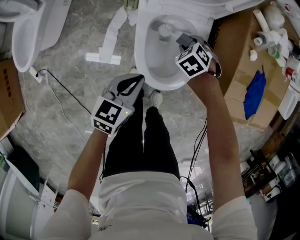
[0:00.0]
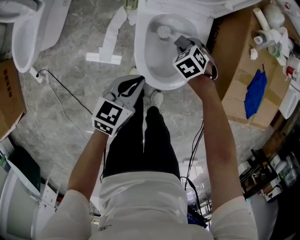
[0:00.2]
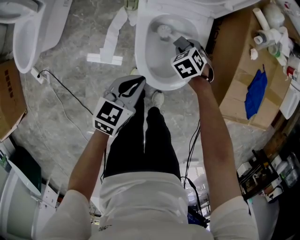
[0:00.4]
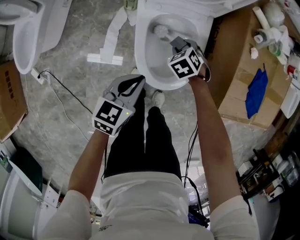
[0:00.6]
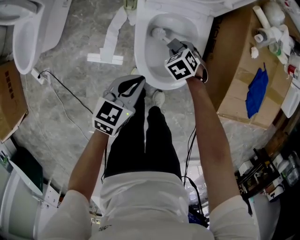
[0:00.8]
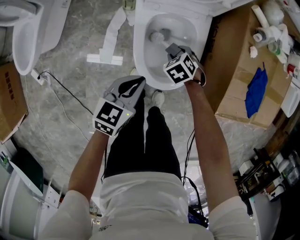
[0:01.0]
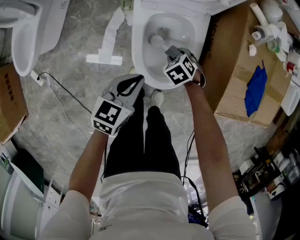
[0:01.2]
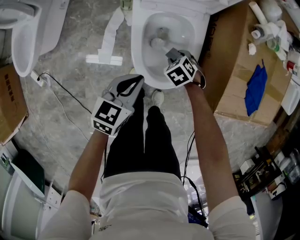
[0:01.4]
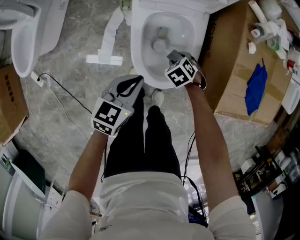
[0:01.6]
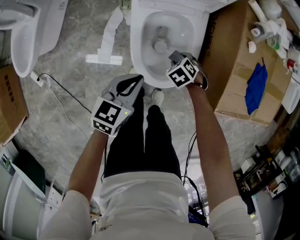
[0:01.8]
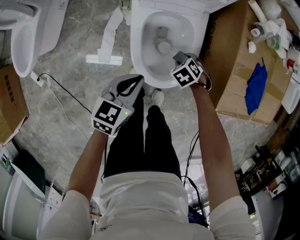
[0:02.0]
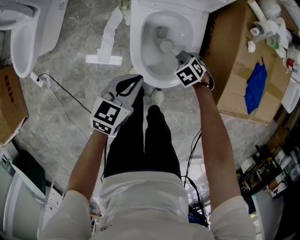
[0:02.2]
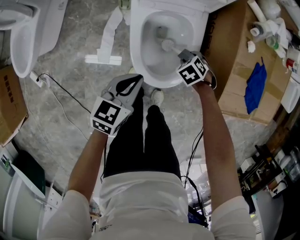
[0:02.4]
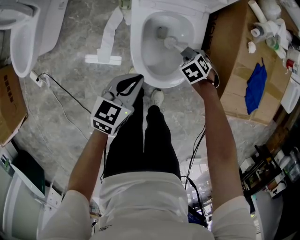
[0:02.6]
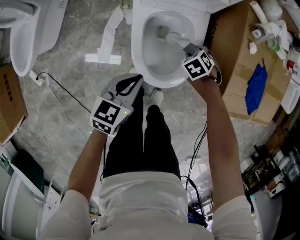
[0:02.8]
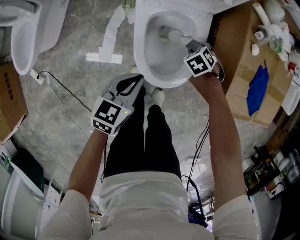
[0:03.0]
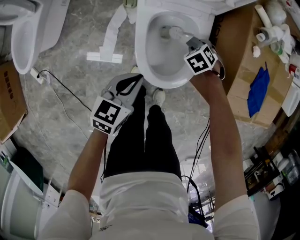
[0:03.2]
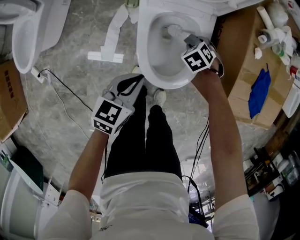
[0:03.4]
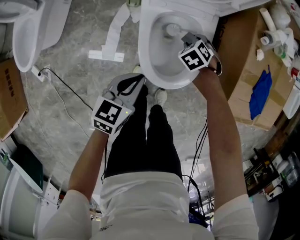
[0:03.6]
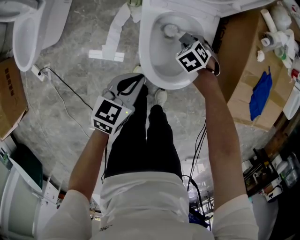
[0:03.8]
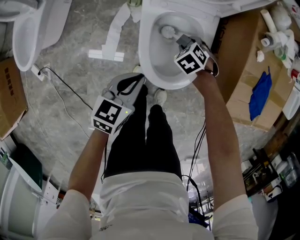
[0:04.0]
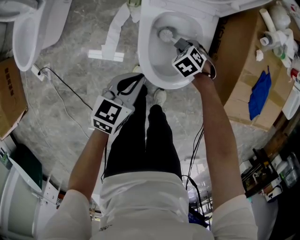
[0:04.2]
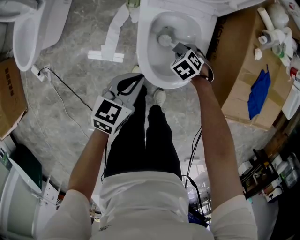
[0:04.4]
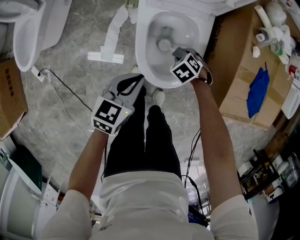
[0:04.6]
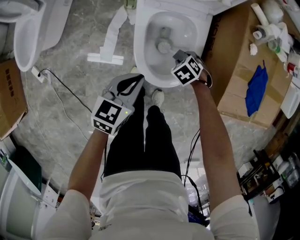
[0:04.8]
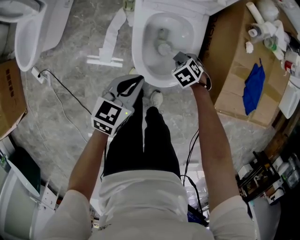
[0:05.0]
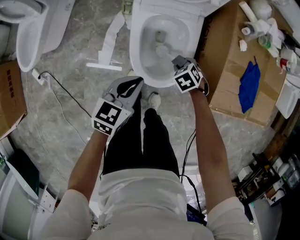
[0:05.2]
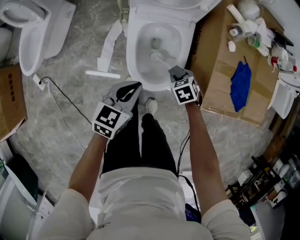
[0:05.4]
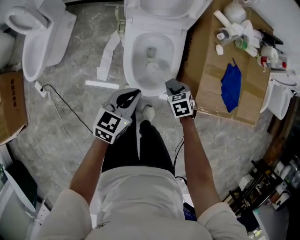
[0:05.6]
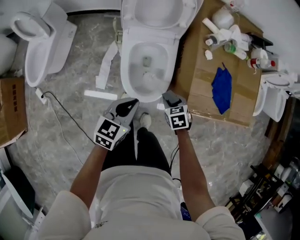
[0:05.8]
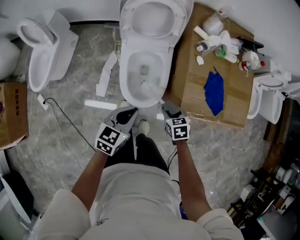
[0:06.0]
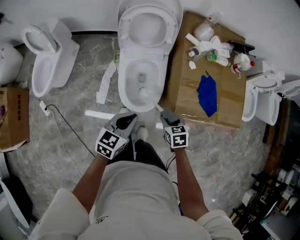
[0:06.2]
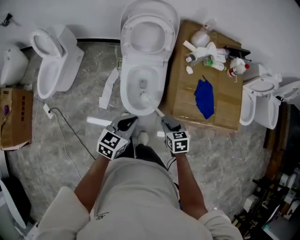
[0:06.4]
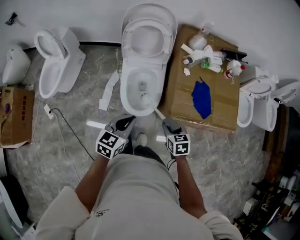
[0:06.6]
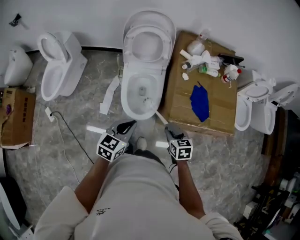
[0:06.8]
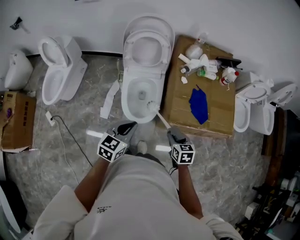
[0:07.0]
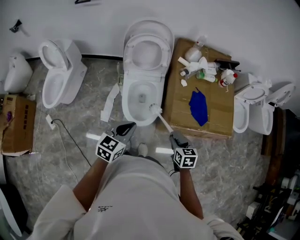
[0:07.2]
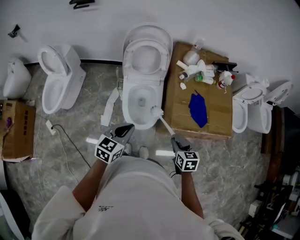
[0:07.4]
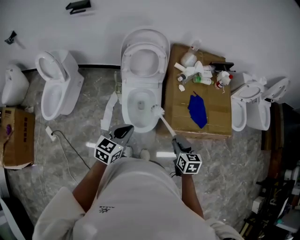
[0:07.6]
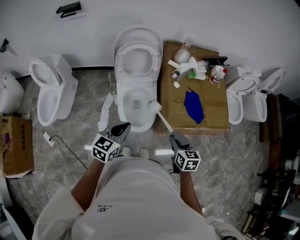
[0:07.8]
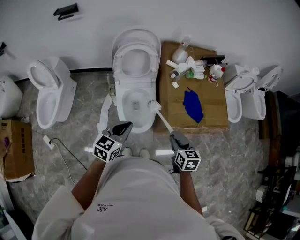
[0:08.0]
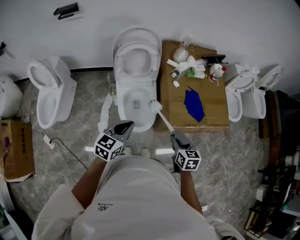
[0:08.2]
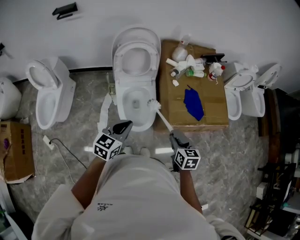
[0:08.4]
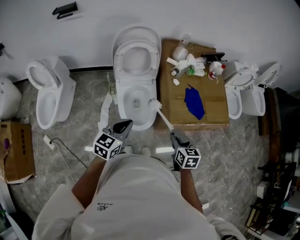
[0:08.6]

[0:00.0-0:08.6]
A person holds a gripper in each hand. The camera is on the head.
0:00.0 to 0:01.4: The right gripper shifts by approximately 10 cm.
0:01.4 to 0:02.8: The right gripper changes place by about 10 cm.
0:02.8 to 0:04.4: The right gripper moves about 10 cm.
0:04.4 to 0:05.8: The left gripper moves upward, approximately 15 cm; the right gripper changes place by some 25 cm, and swivels some 40 degrees.
0:05.8 to 0:07.2: The left gripper is displaced upward and backward by about 20 cm. The right gripper goes approximately 25 cm upward, backward and to the right, and changes its angle by roughly 30 degrees.
0:07.2 to 0:08.6: The right gripper goes approximately 5 cm upward, while the left gripper is displaced to the left by roughly 5 cm.

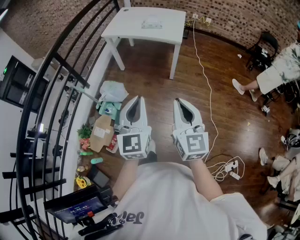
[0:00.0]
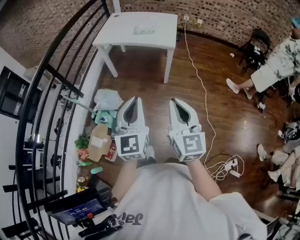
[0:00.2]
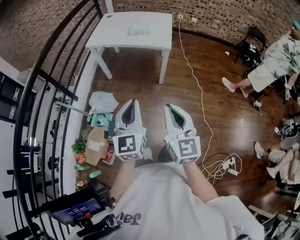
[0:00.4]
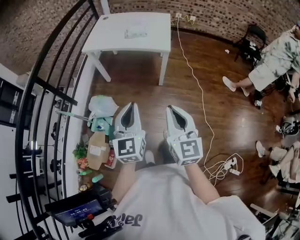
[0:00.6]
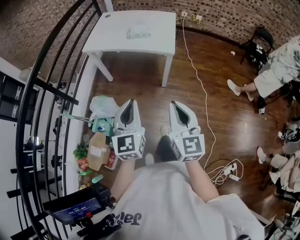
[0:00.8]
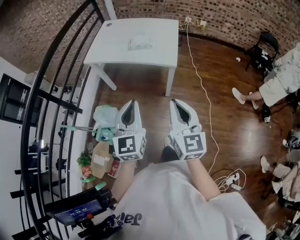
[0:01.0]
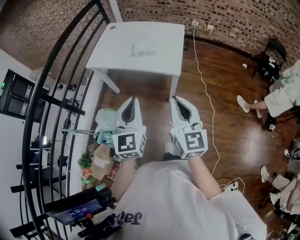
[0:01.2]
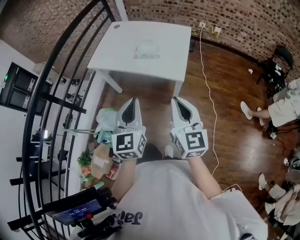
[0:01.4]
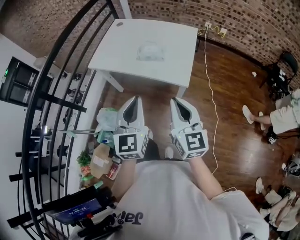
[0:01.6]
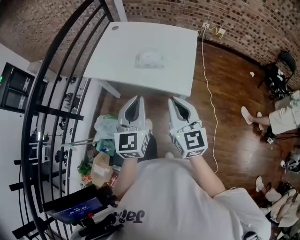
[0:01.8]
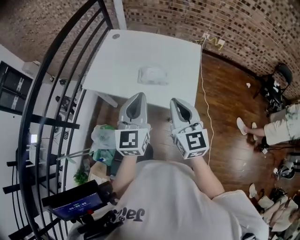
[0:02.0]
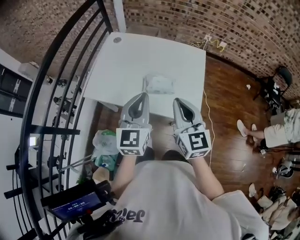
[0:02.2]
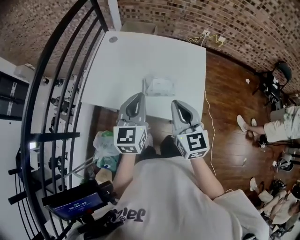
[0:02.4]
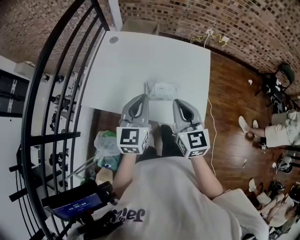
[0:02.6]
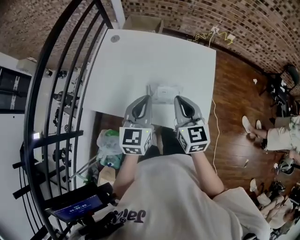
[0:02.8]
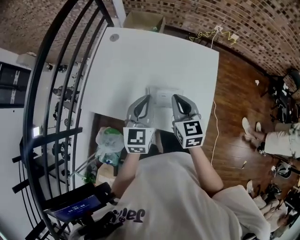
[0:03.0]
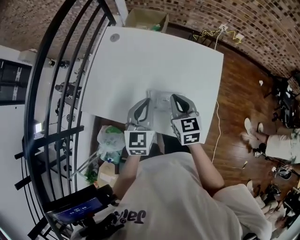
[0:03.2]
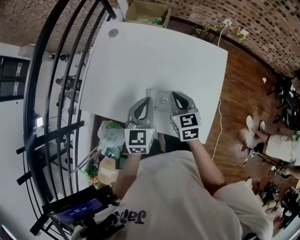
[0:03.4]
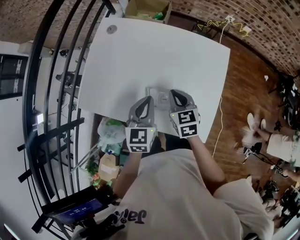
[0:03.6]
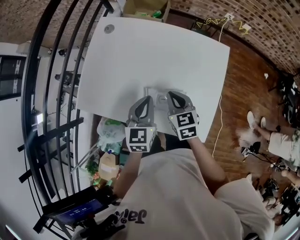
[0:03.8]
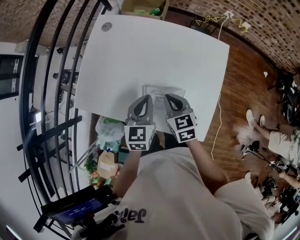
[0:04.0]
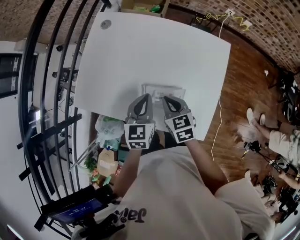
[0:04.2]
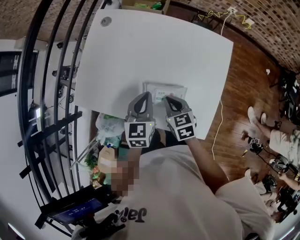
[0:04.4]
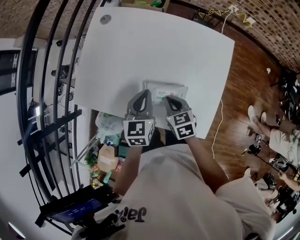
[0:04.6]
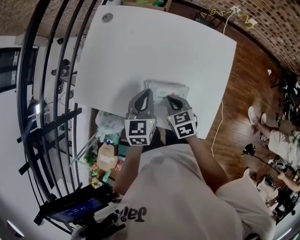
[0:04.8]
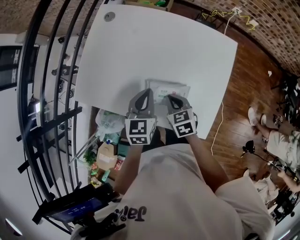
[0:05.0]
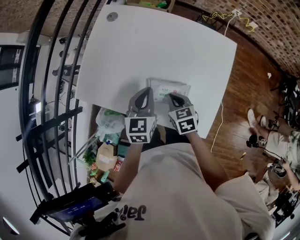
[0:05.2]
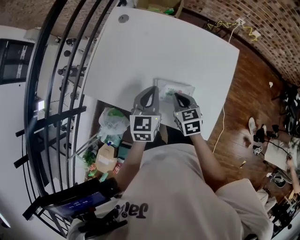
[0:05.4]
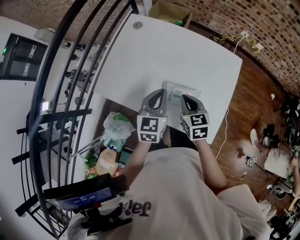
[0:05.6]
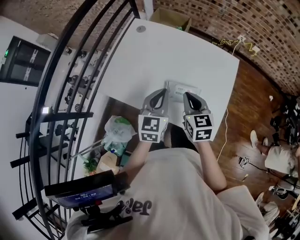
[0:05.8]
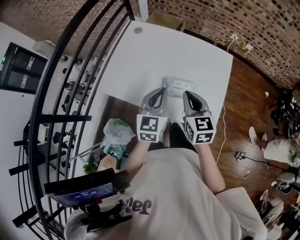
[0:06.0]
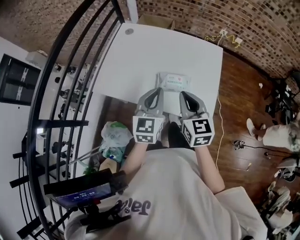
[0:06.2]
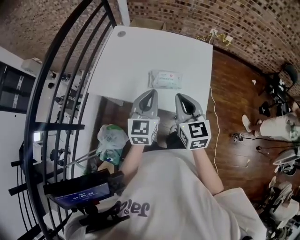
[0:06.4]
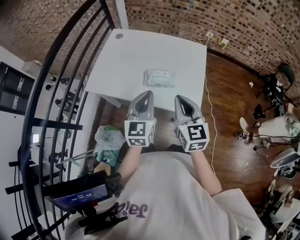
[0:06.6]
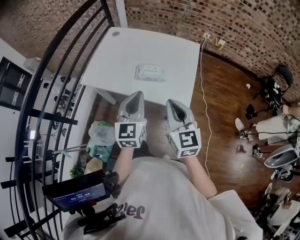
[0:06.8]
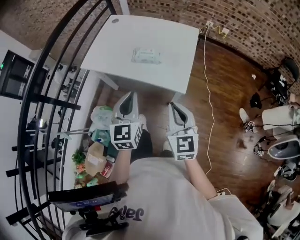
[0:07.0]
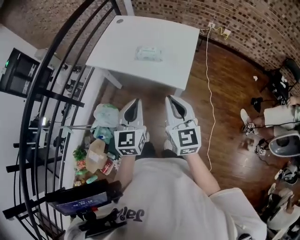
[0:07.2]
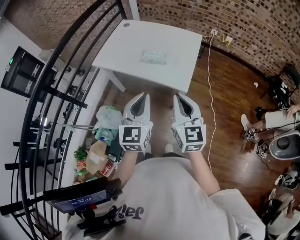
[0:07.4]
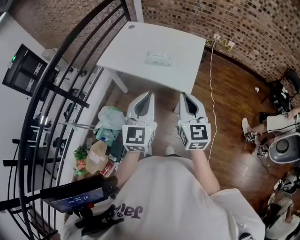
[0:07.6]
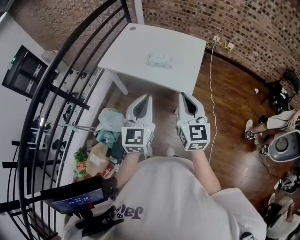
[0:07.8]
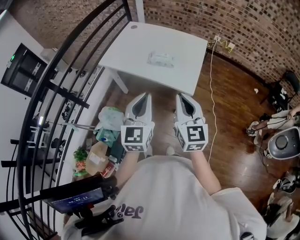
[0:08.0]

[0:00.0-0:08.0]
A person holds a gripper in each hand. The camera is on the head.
0:00.0 to 0:01.6: The pair of grippers is taken forward, some 50 cm.
0:01.6 to 0:03.2: The pair of grippers is taken forward, approximately 50 cm. The right gripper turns by approximately 30 degrees.
0:03.2 to 0:04.8: The two grippers go roughly 10 cm downward. The right gripper swivels roughly 20 degrees.
0:04.8 to 0:06.4: The right gripper heads upward and backward, covering roughly 30 cm, and tips its fingers upward by some 30 degrees. The left gripper heads backward and upward, covering approximately 25 cm, and rotates approximately 20 degrees.
0:06.4 to 0:08.0: The grippers both shift backward by about 30 cm.

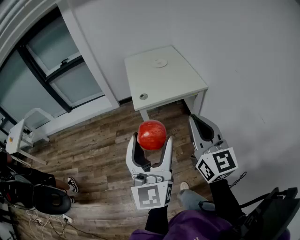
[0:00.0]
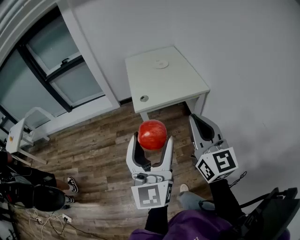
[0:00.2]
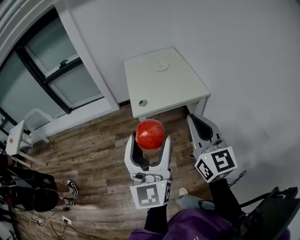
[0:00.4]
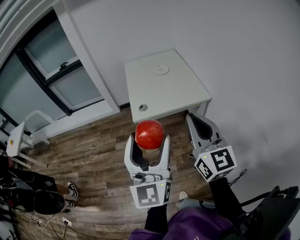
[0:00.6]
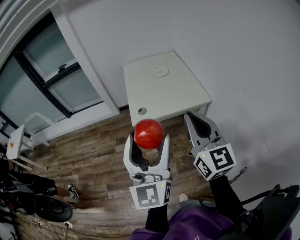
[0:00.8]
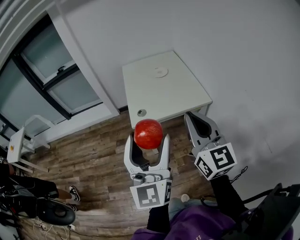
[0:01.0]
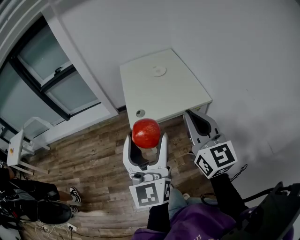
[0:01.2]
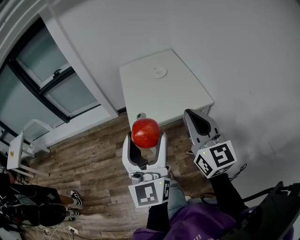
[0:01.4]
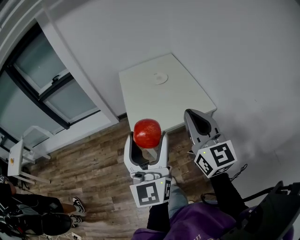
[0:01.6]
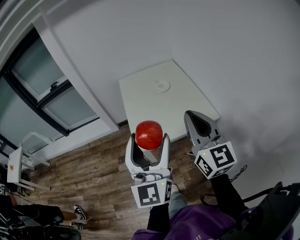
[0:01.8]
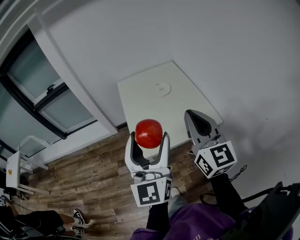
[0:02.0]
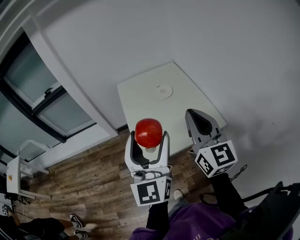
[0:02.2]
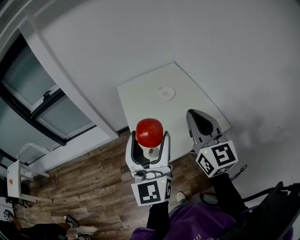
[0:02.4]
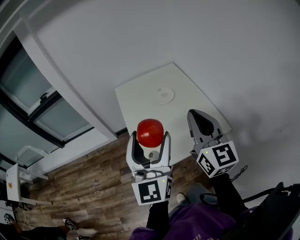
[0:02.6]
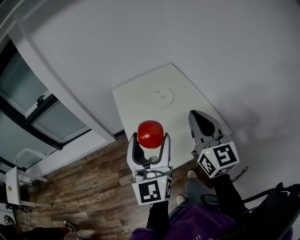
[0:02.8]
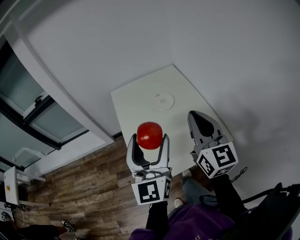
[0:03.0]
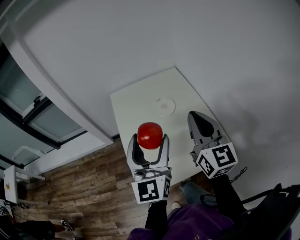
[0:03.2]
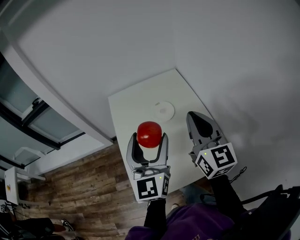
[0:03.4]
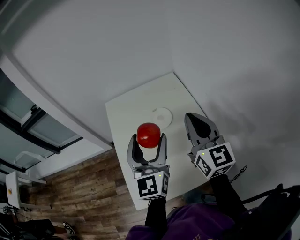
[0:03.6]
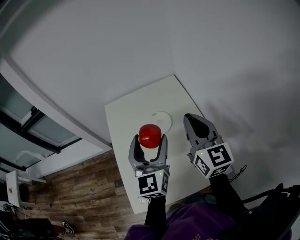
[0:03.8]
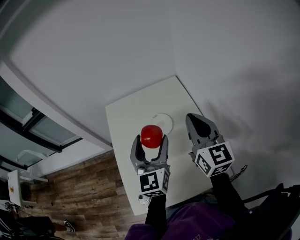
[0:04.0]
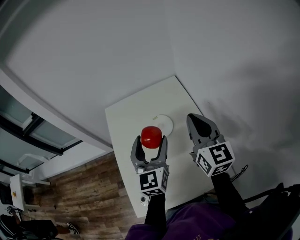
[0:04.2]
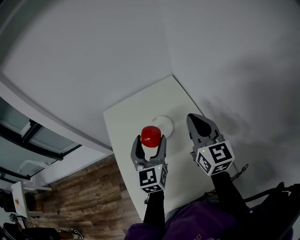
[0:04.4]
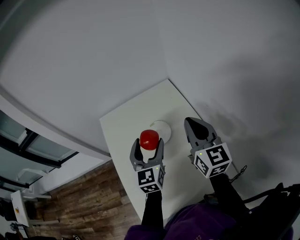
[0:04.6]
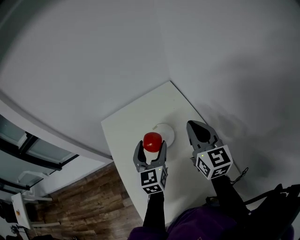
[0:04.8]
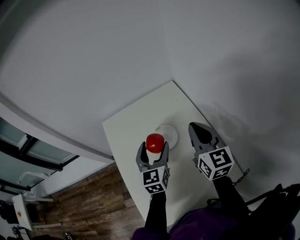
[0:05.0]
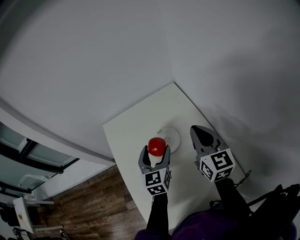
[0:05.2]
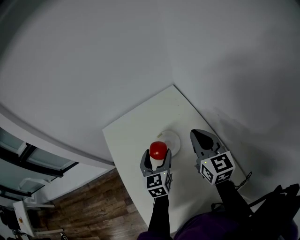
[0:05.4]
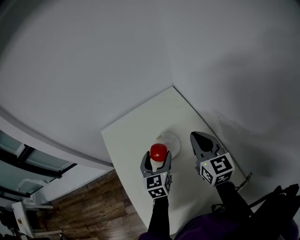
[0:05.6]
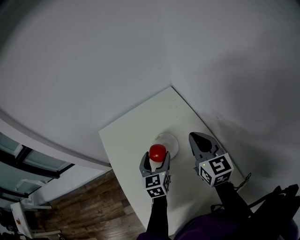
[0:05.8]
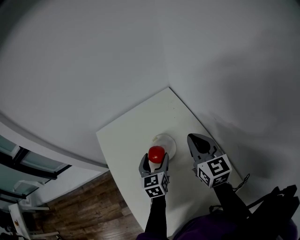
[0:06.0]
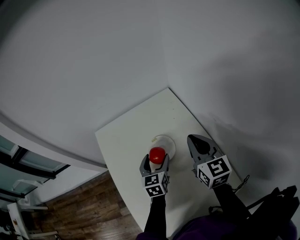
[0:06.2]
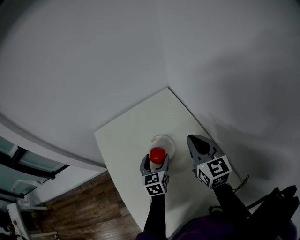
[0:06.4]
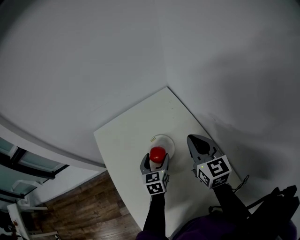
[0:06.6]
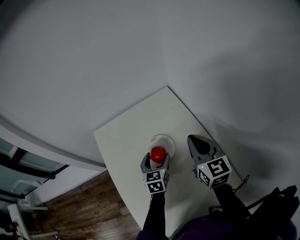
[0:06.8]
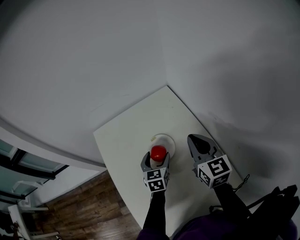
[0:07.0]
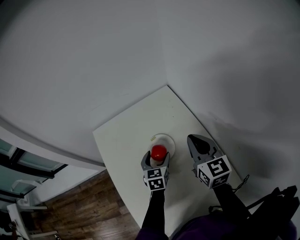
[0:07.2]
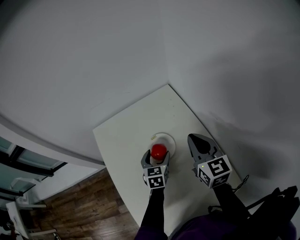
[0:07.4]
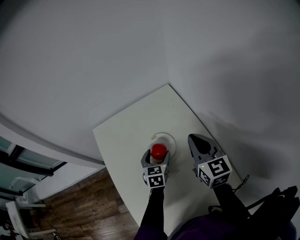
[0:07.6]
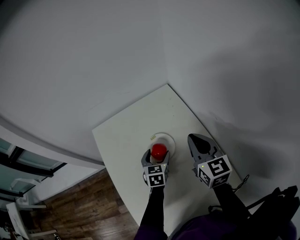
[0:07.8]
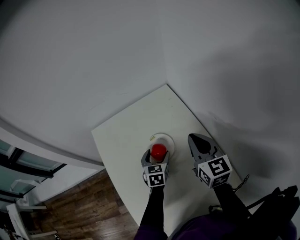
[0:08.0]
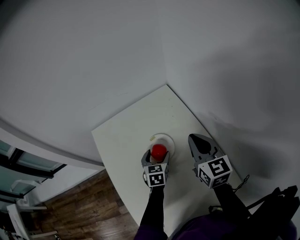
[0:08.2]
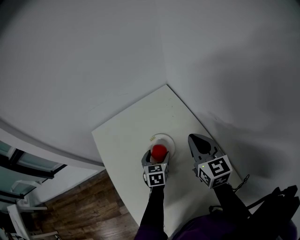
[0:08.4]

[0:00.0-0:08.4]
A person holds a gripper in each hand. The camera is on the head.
0:00.0 to 0:01.4: Both grippers move forward, some 20 cm.
0:01.4 to 0:02.8: Both grippers travel together forward, approximately 30 cm.
0:02.8 to 0:04.2: Both grippers move forward, about 25 cm.
0:04.2 to 0:05.6: The right gripper goes approximately 10 cm downward and forward, while the left gripper moves downward and forward, approximately 15 cm, and turns by approximately 20 degrees.
0:05.6 to 0:07.0: The left gripper heads downward, covering roughly 10 cm.
0:07.0 to 0:08.4: The grippers move only a little.
